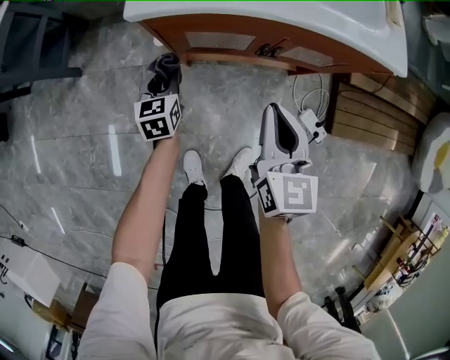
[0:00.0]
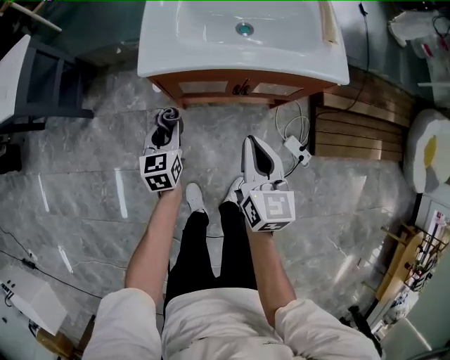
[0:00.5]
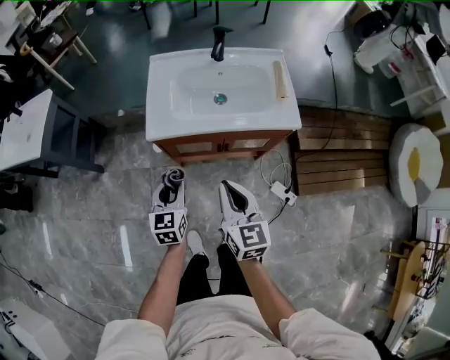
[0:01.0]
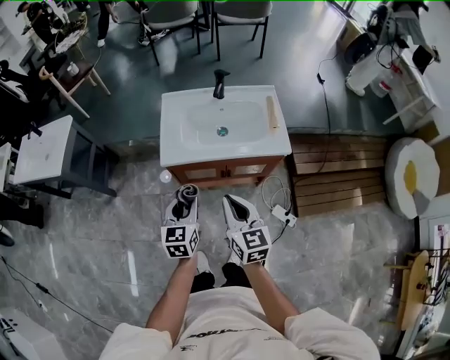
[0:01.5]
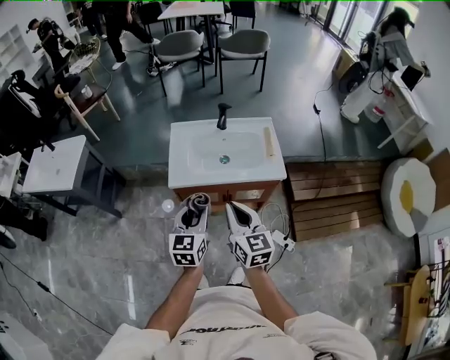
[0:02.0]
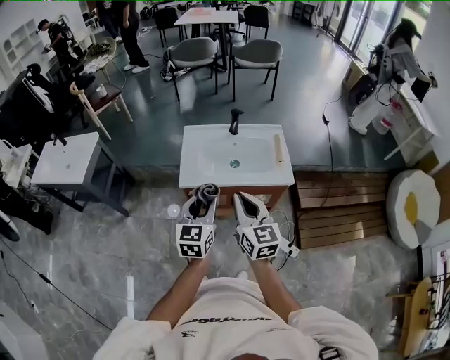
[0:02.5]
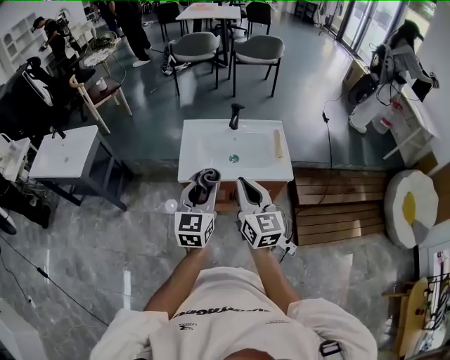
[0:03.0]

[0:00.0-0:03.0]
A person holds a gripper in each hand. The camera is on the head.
0:00.0 to 0:01.5: The two grippers go roughly 35 cm upward.
0:01.5 to 0:03.0: The grippers both shift upward by about 15 cm.

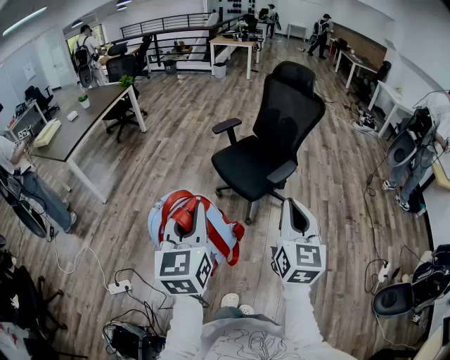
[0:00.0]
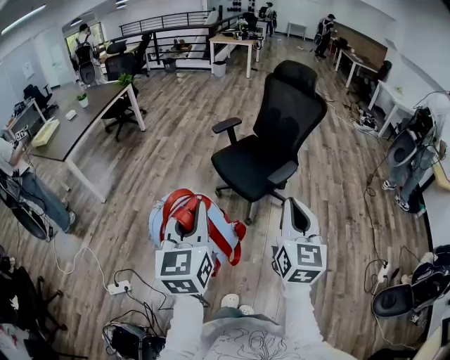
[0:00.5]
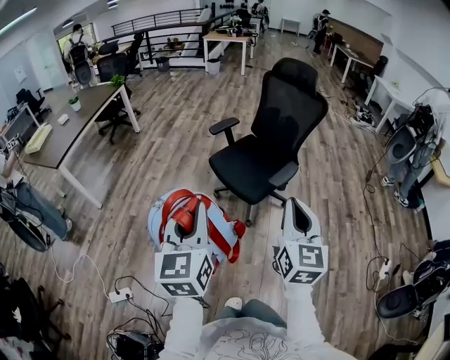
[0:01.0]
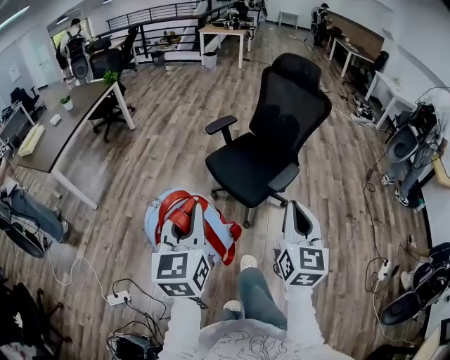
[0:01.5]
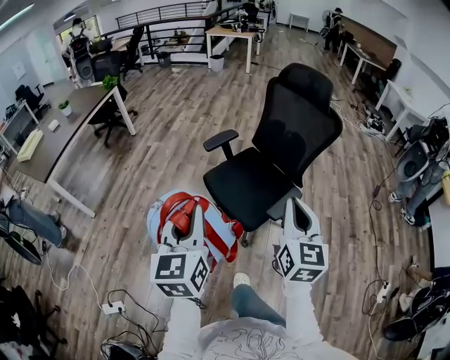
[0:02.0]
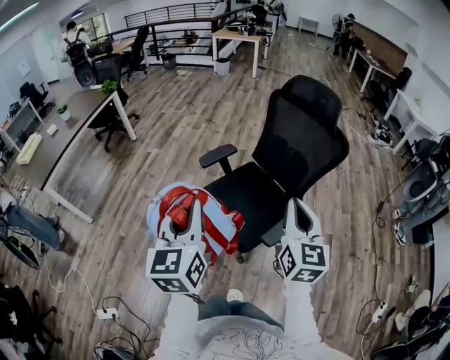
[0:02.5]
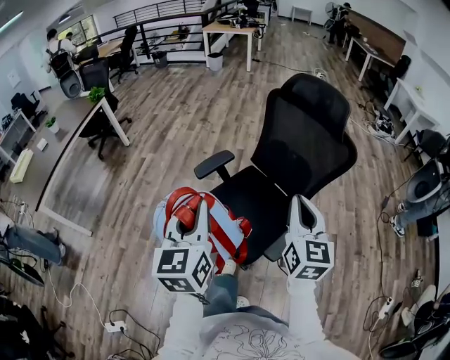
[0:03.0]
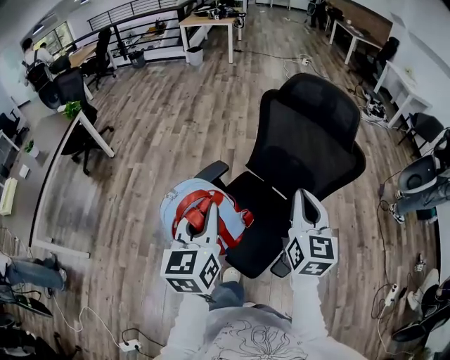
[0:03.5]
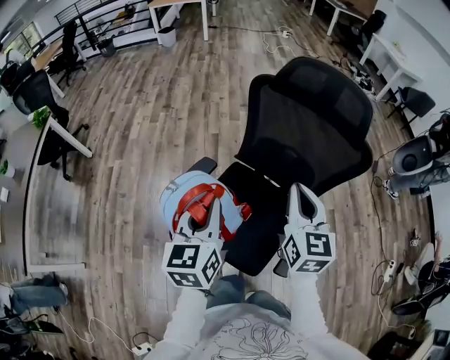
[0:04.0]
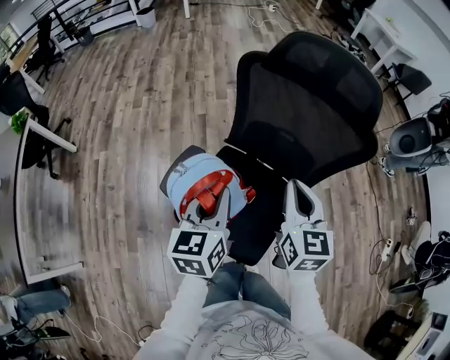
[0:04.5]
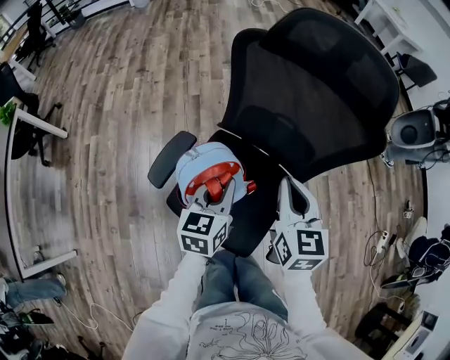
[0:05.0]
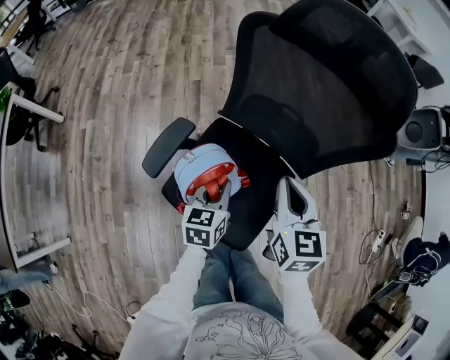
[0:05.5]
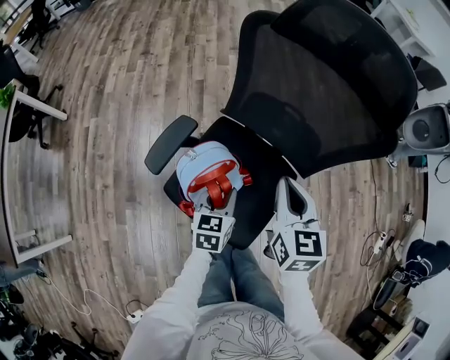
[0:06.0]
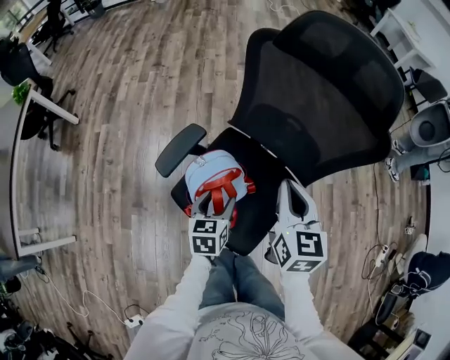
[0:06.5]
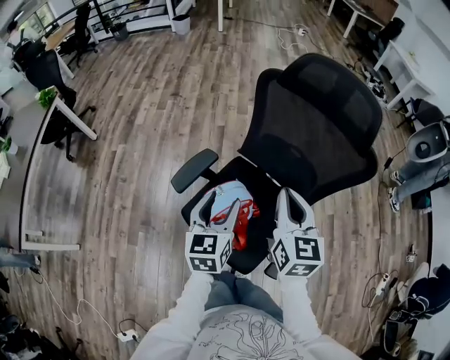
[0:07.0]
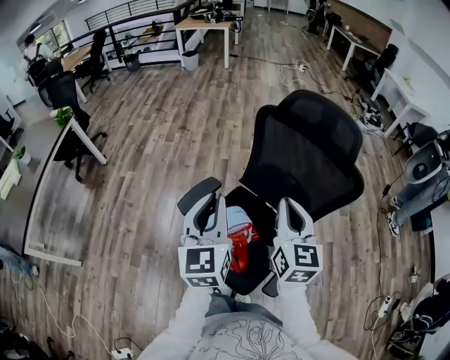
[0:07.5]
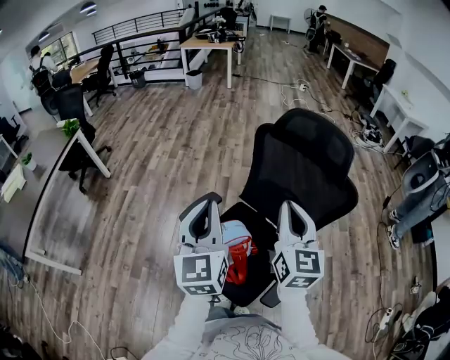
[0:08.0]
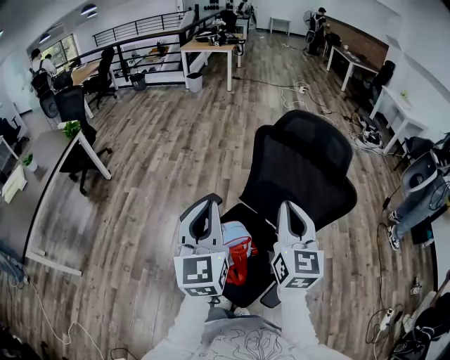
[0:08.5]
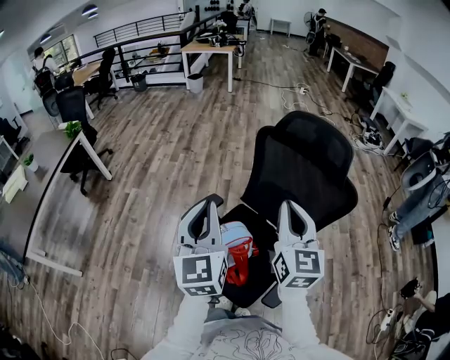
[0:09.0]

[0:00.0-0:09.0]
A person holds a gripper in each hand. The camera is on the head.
0:00.0 to 0:02.0: The two grippers go some 30 cm forward.
0:02.0 to 0:04.5: The pair of grippers is taken some 50 cm. The left gripper changes its angle by approximately 40 degrees, while the right gripper changes its angle by approximately 20 degrees.
0:04.5 to 0:07.0: The left gripper goes downward and returns, roughly 20 cm each way, and opens. The right gripper travels downward and back again, approximately 10 cm each way.
0:07.0 to 0:09.0: The left gripper moves upward, about 25 cm, changes its angle by some 30 degrees, and closes its fingers. Meanwhile the right gripper moves upward, some 15 cm.

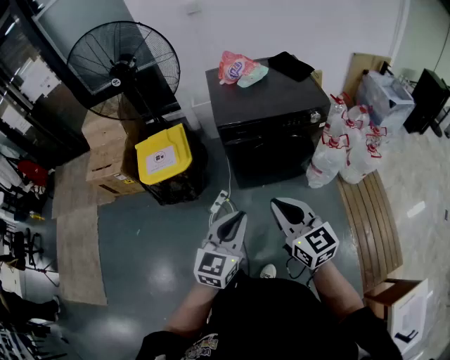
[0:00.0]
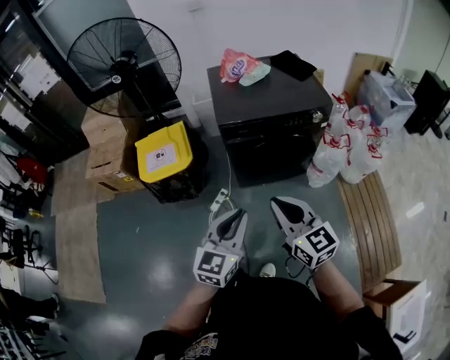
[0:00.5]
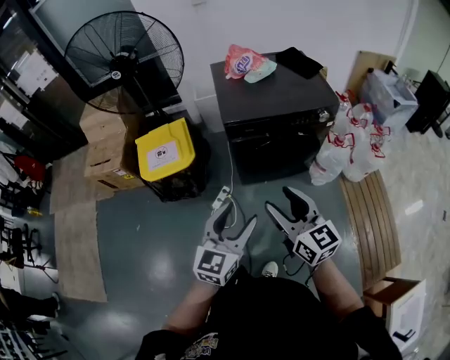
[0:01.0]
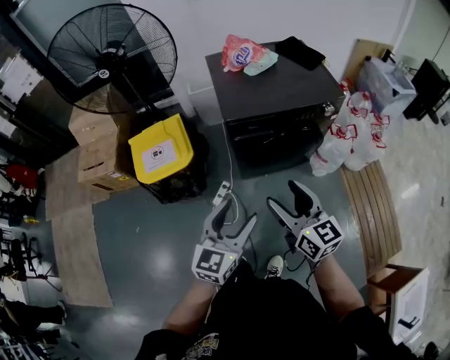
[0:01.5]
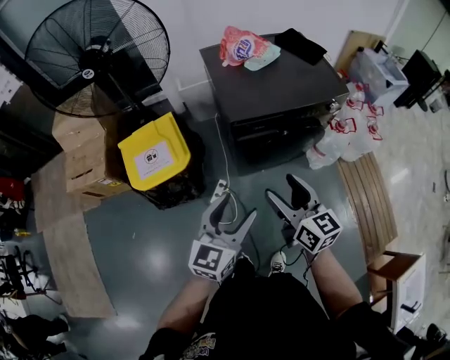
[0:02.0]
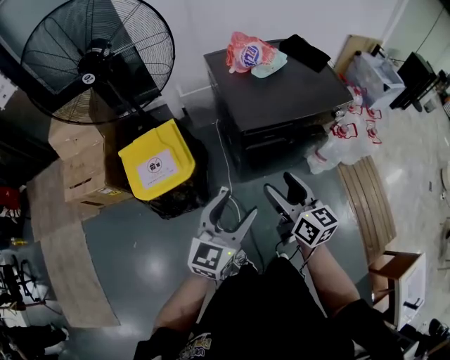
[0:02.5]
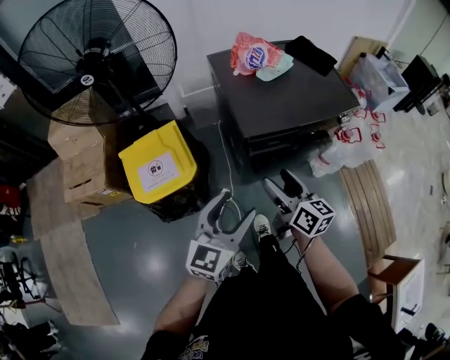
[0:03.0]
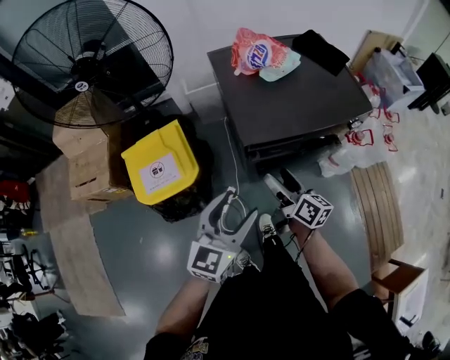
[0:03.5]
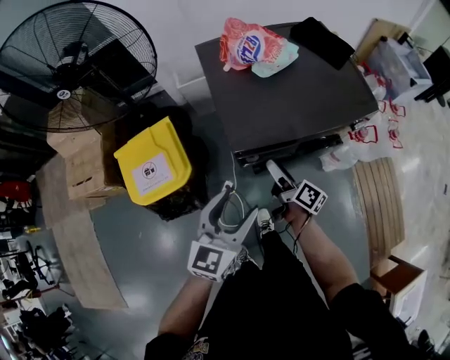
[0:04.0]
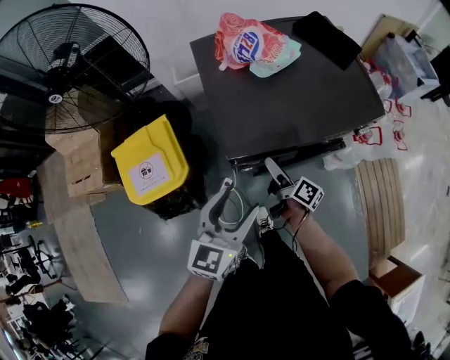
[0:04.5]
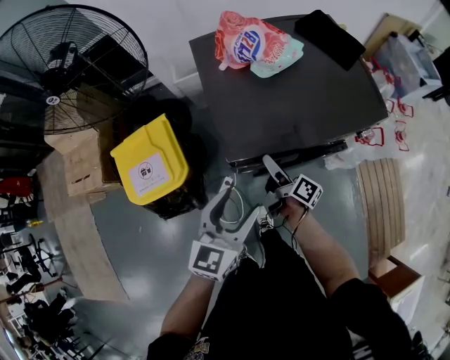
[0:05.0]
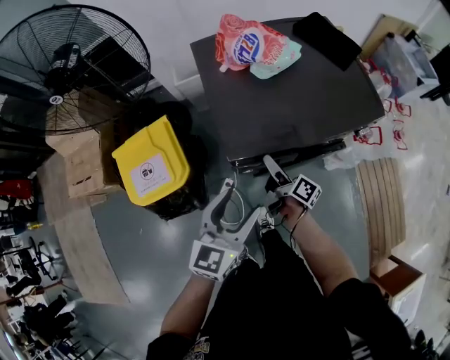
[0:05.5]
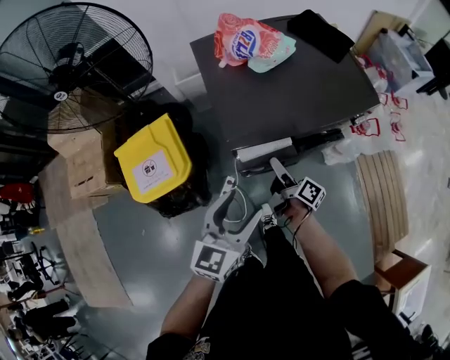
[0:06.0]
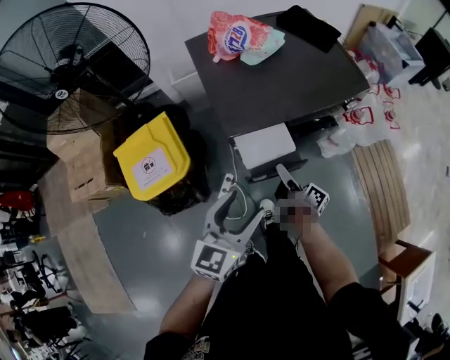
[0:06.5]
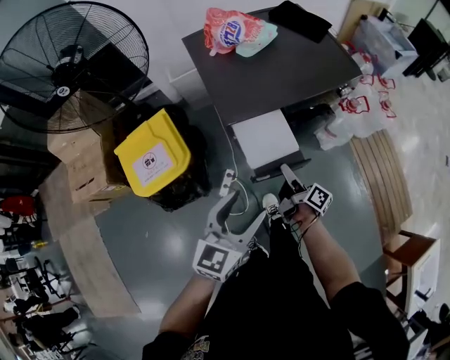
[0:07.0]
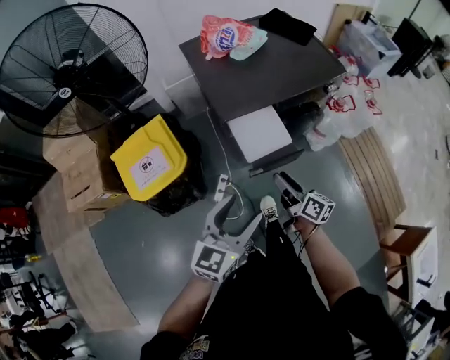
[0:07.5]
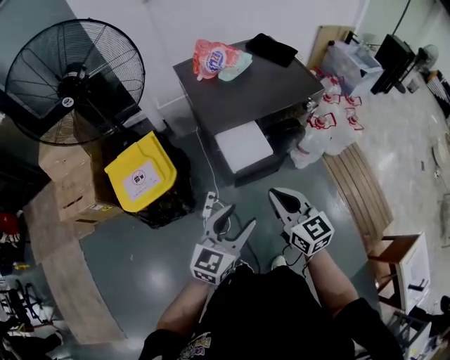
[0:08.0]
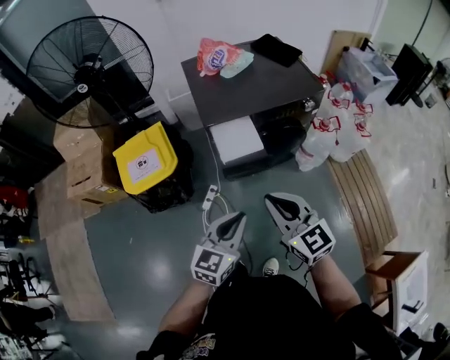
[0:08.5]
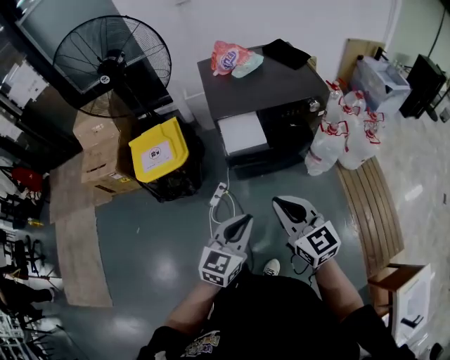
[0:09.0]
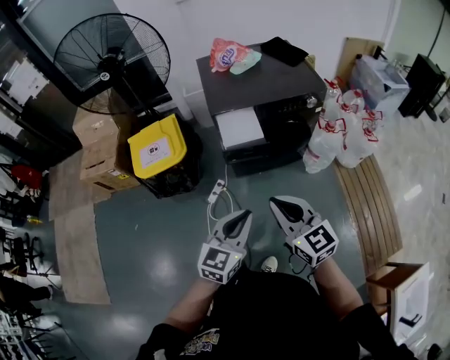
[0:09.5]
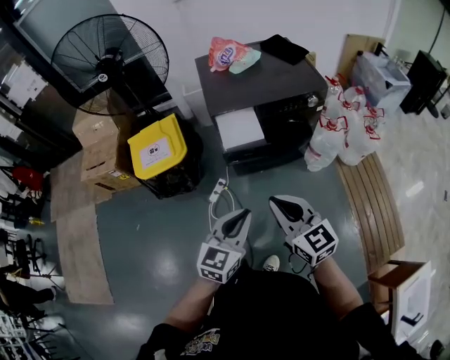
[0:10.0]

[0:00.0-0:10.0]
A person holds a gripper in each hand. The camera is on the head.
0:00.0 to 0:02.0: The two grippers go about 20 cm forward and to the left. The left gripper opens, while the right gripper opens up.
0:02.0 to 0:04.0: The left gripper moves forward, about 20 cm; the right gripper heads forward and downward, covering some 30 cm, and rolls clockwise, seen from behind, by roughly 50 degrees.
0:06.0 to 0:08.0: The left gripper moves backward, roughly 20 cm, while the right gripper shifts roughly 35 cm backward and upward, rotates around the line of its fingers by some 70 degrees, counterclockwise from behind, and closes its fingers.
0:08.0 to 0:10.0: Both grippers move backward and to the right, approximately 15 cm. The left gripper closes.

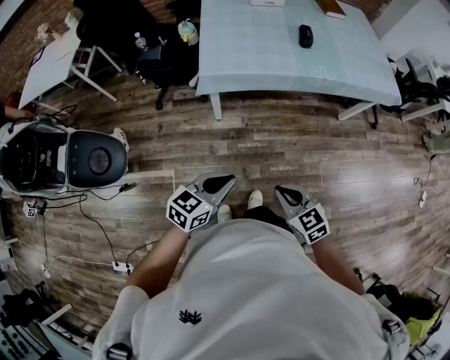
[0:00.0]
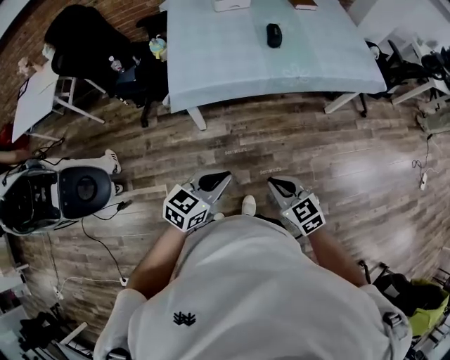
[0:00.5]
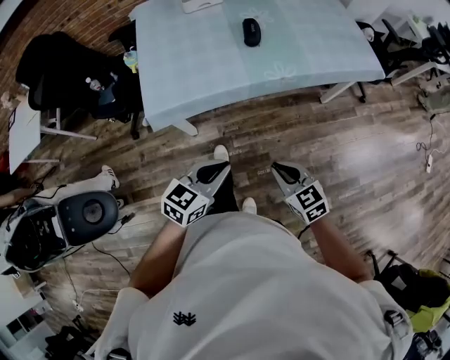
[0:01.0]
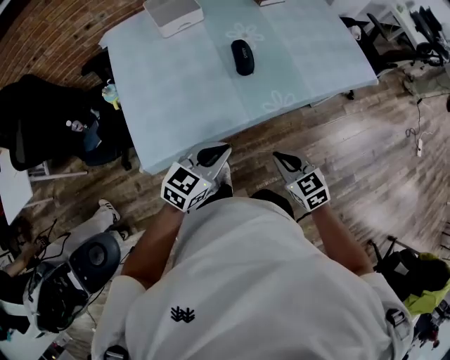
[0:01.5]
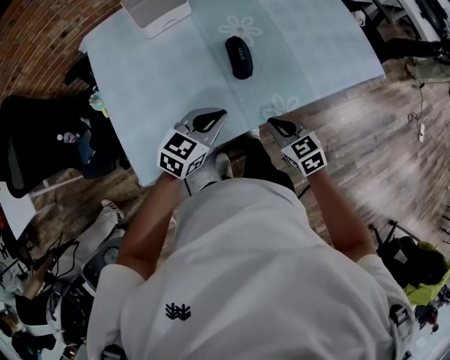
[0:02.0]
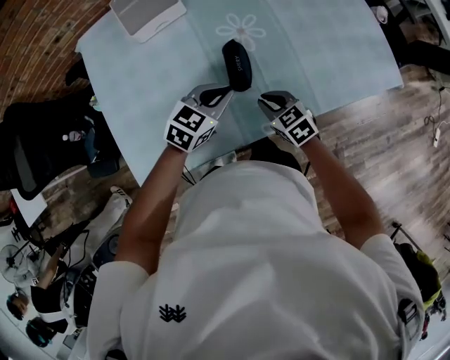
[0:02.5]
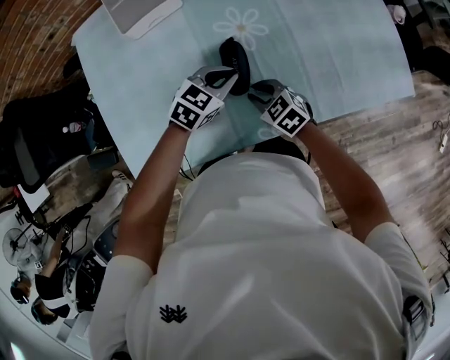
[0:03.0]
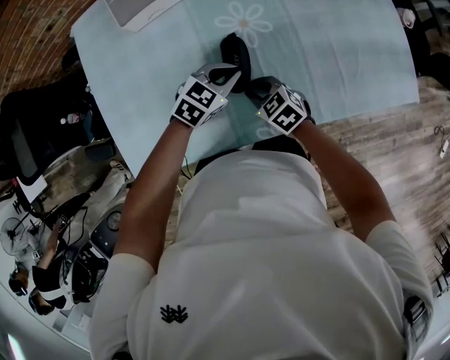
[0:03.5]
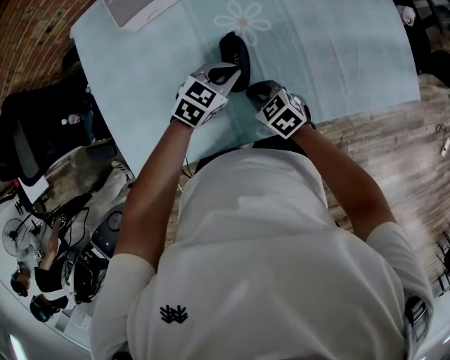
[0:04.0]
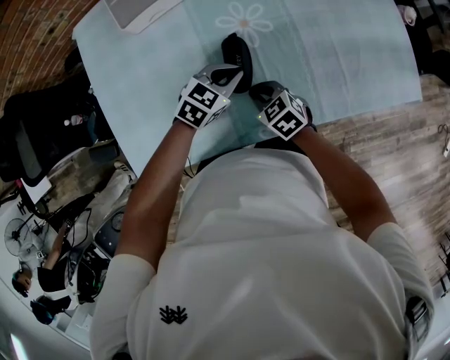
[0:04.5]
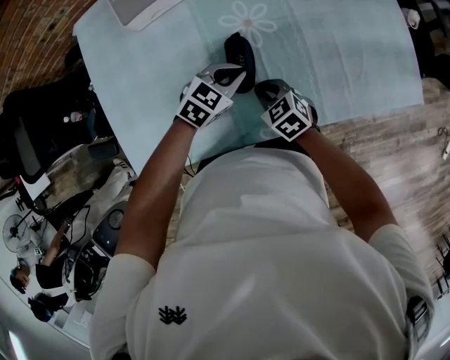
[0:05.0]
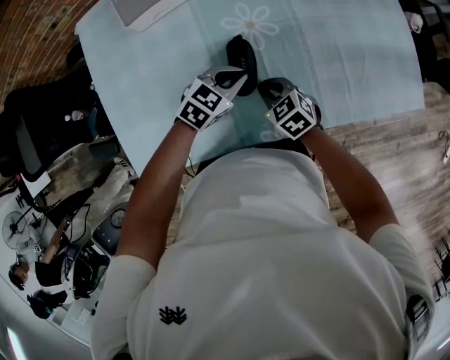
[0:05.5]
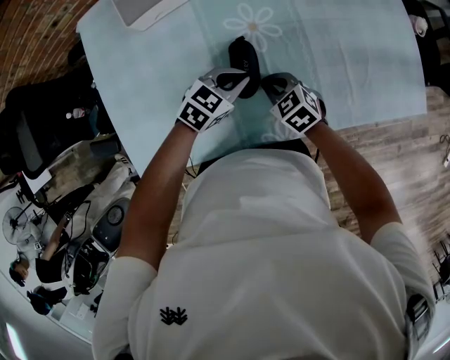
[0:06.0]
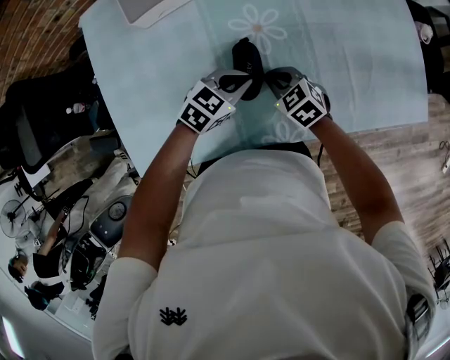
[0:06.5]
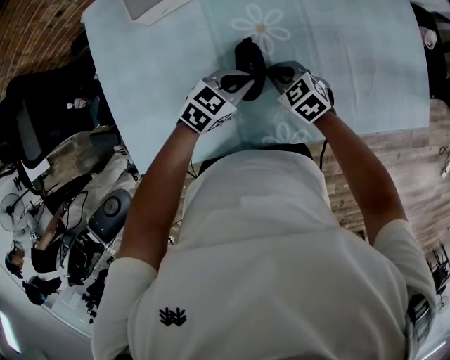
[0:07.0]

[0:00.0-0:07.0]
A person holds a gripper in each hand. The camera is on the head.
0:00.0 to 0:02.0: The two grippers travel together, forward, roughly 50 cm. The left gripper turns by some 20 degrees, while the right gripper changes its angle by approximately 20 degrees.
0:02.0 to 0:03.5: The left gripper goes about 25 cm forward, downward and to the right. Meanwhile the right gripper goes roughly 20 cm forward and downward, and swivels approximately 30 degrees.
0:03.5 to 0:05.0: The grippers move only a little.
0:05.0 to 0:07.0: The right gripper heads forward, covering approximately 5 cm.
